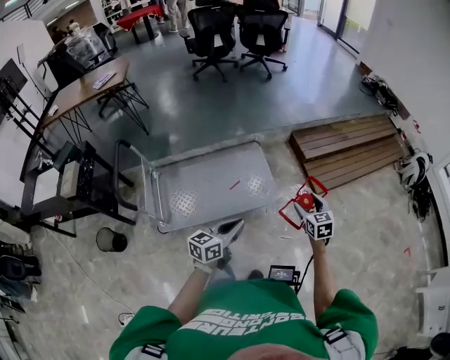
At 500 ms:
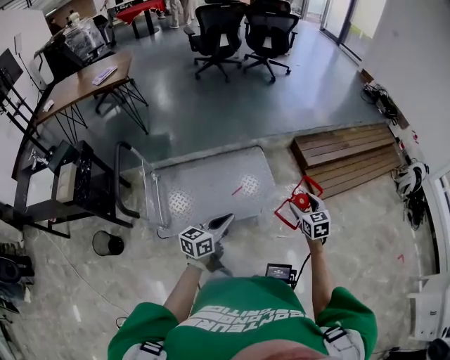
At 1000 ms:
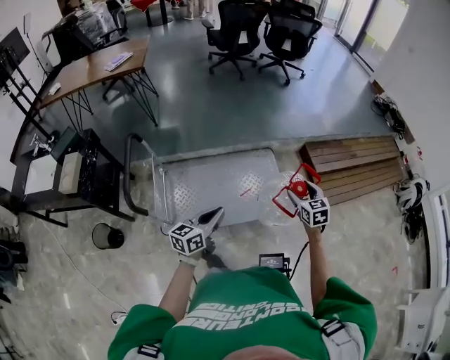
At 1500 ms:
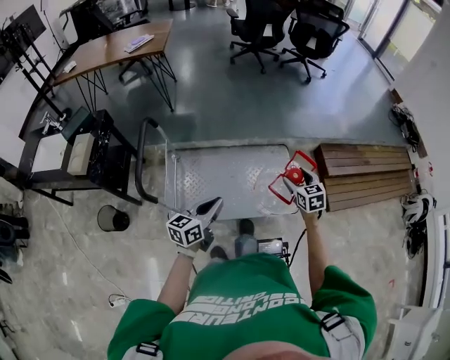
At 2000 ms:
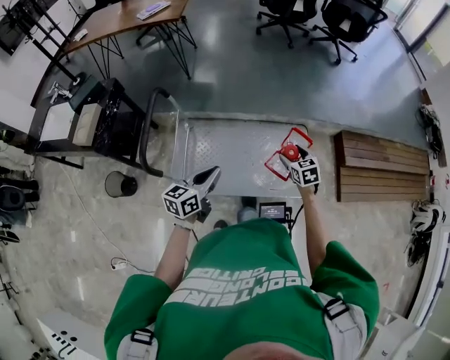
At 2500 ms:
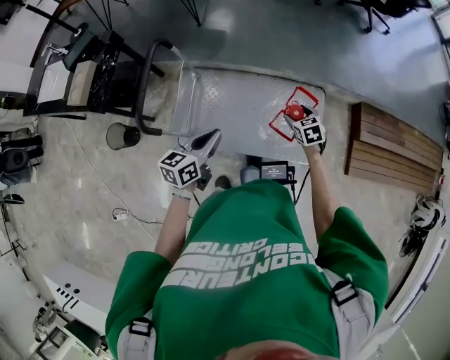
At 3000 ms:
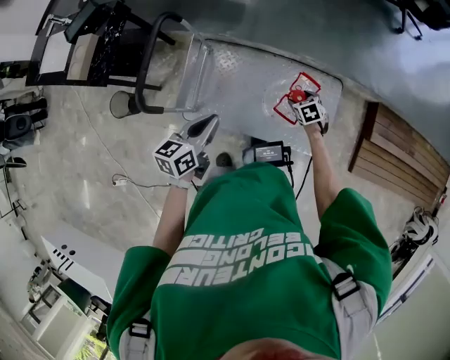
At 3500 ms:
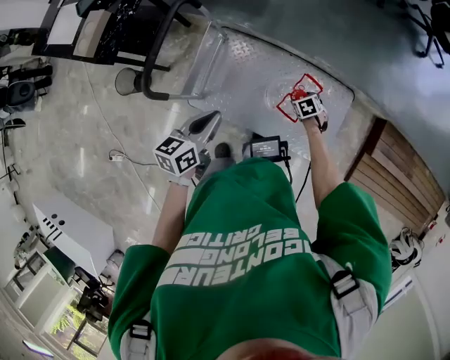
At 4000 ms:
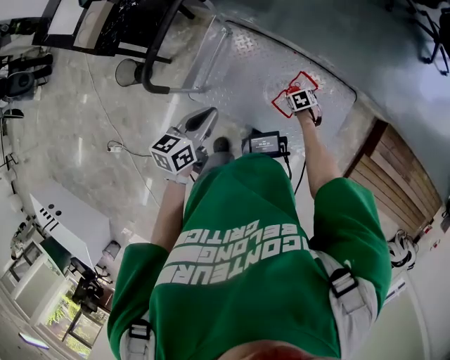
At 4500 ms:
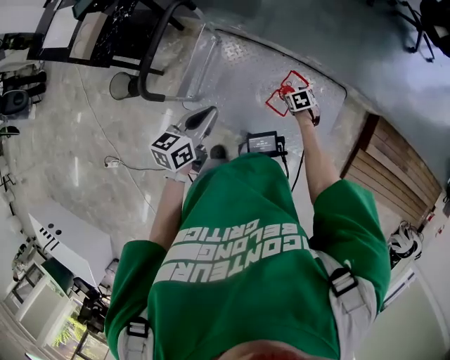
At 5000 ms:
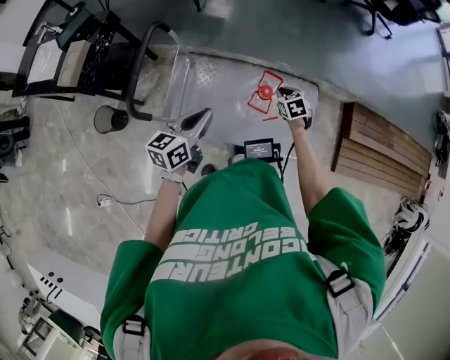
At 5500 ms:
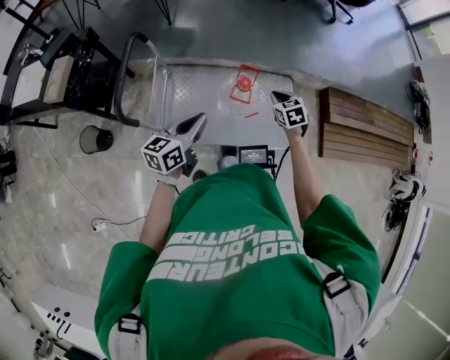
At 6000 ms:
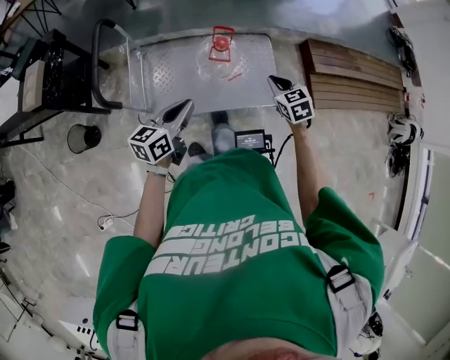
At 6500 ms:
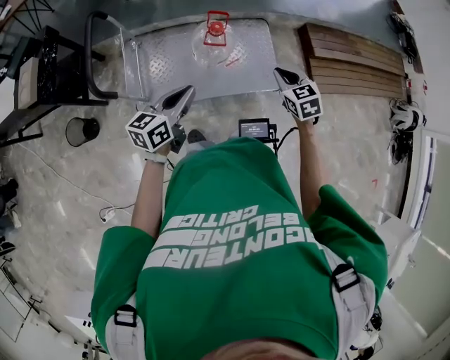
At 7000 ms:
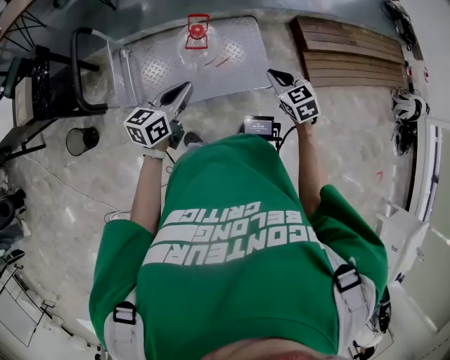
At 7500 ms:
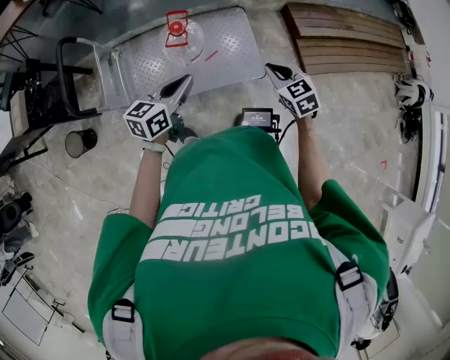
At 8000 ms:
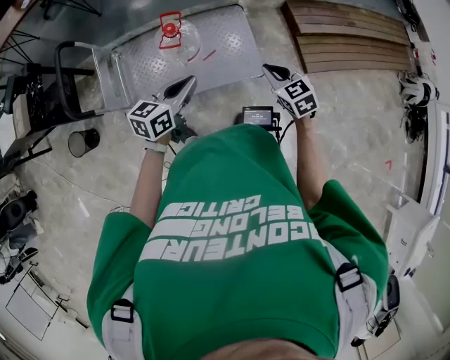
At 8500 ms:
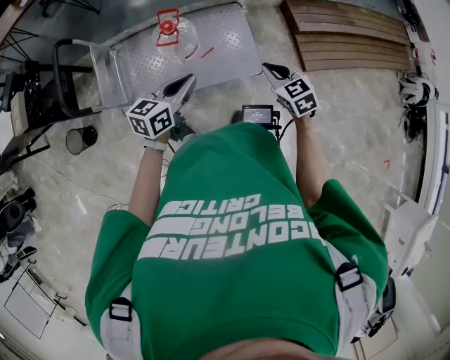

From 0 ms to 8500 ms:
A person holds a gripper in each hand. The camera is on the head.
From 0 ms to 2000 ms: The left gripper ends up some 35 cm from where it was, and swivels about 30 degrees. The right gripper shifts by about 40 cm, and swivels about 30 degrees.
From 2000 ms to 4000 ms: The right gripper moves downward, about 30 cm, and tilts its fingers approximately 40 degrees downward. Meanwhile the left gripper moves roughly 10 cm, and changes its angle by approximately 30 degrees.
From 4000 ms to 6500 ms: The right gripper shifts approximately 35 cm upward, tilts its fingers some 40 degrees upward, and closes its fingers. Meanwhile the left gripper ends up about 15 cm from where it was, and swivels about 40 degrees.
From 6500 ms to 8500 ms: The grippers both shift to the right by about 20 cm.

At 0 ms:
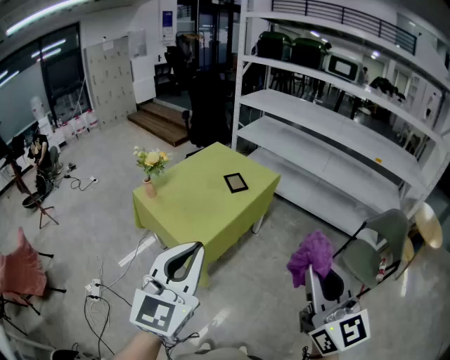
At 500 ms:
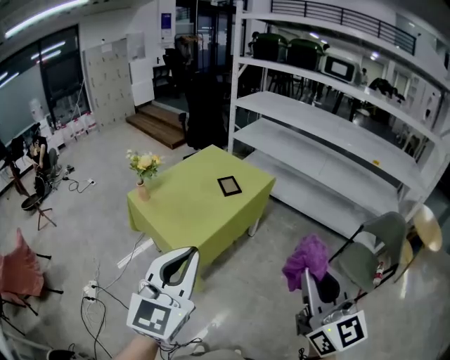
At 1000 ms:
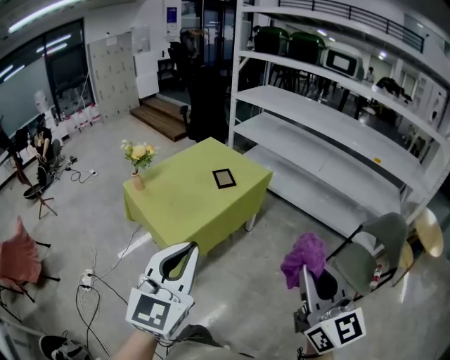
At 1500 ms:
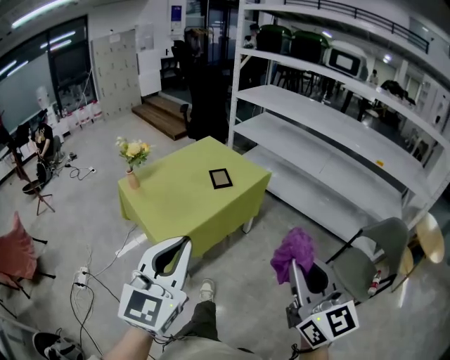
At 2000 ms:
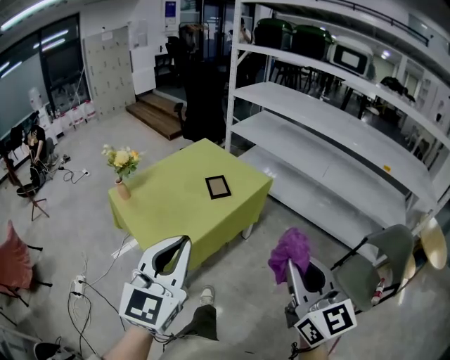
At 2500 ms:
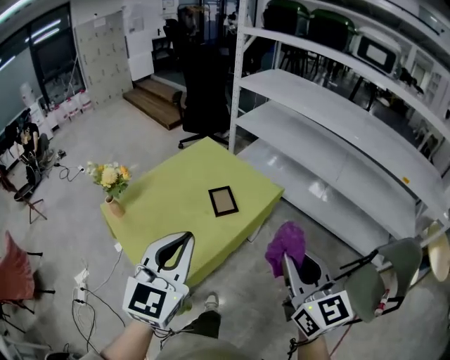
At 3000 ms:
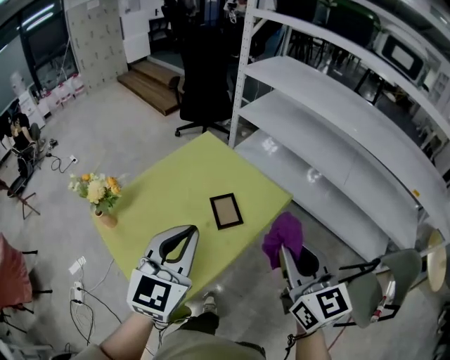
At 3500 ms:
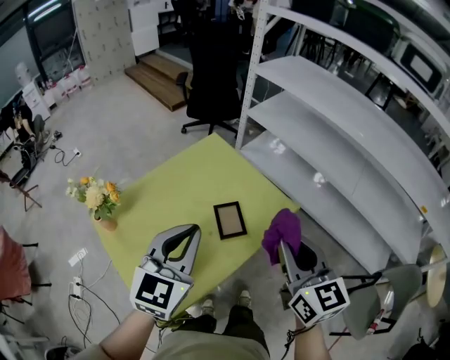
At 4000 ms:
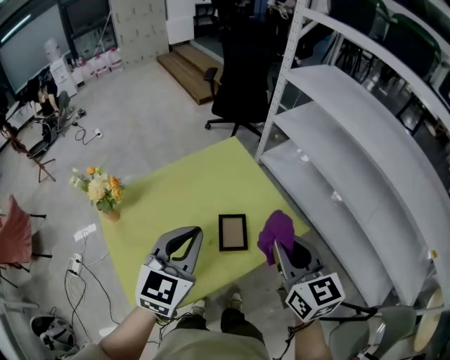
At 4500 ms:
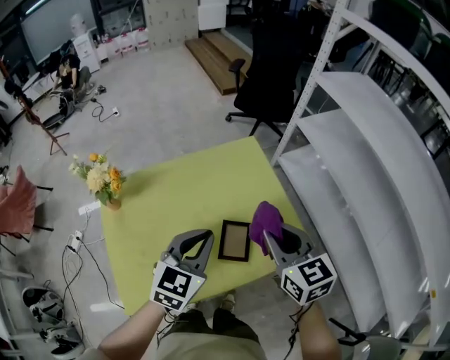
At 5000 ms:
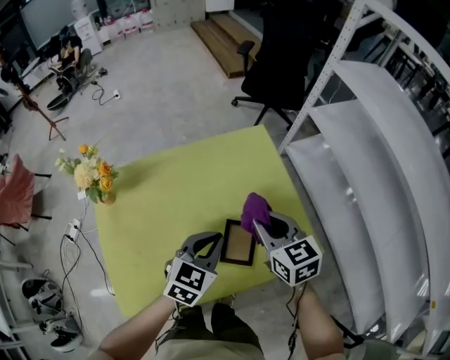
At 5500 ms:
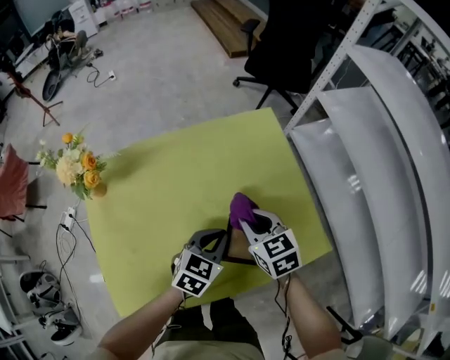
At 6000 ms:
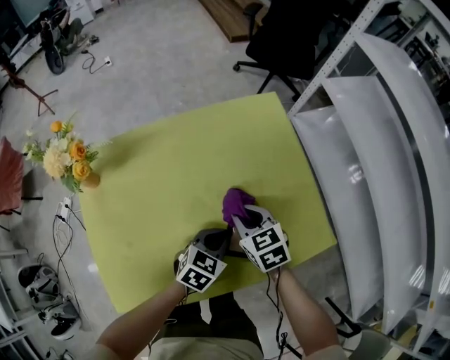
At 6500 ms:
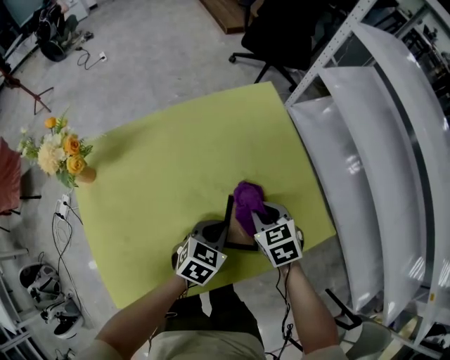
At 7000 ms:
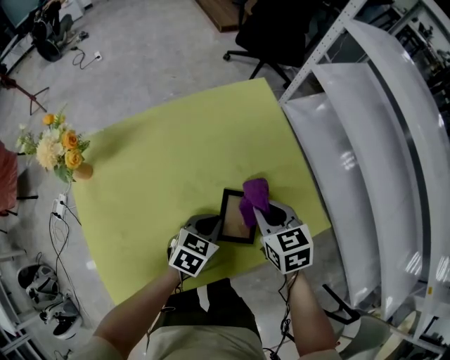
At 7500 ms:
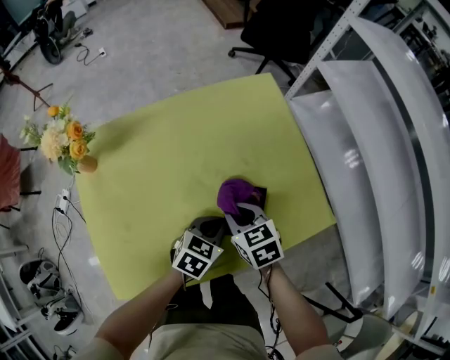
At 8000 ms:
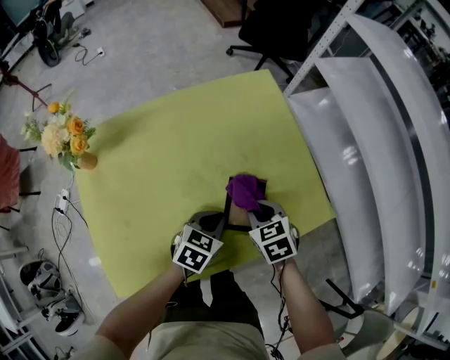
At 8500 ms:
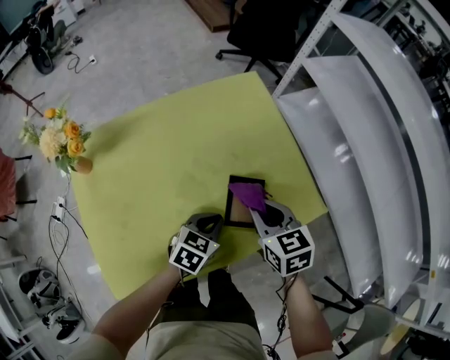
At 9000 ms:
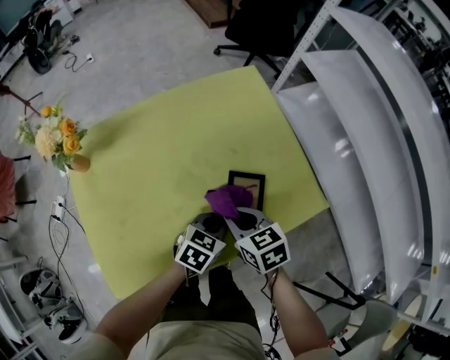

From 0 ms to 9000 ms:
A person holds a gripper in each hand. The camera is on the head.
From 0 ms to 2000 ms: The two grippers go some 20 cm forward, to the right and downward.
From 2000 ms to 4500 ms: Both grippers are carried forward, approximately 50 cm. The left gripper changes its angle by roughly 30 degrees. Meanwhile the right gripper rotates roughly 40 degrees.
From 4500 ms to 7000 ms: The grippers both shift downward by some 25 cm. The right gripper rotates roughly 20 degrees. The left gripper rotates roughly 30 degrees.
From 7000 ms to 9000 ms: The left gripper shifts by some 5 cm; the right gripper goes up and down, about 10 cm each way, reversing 2 times.

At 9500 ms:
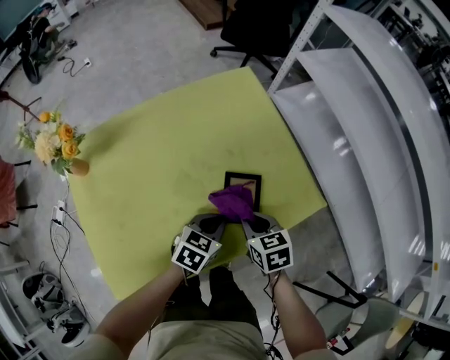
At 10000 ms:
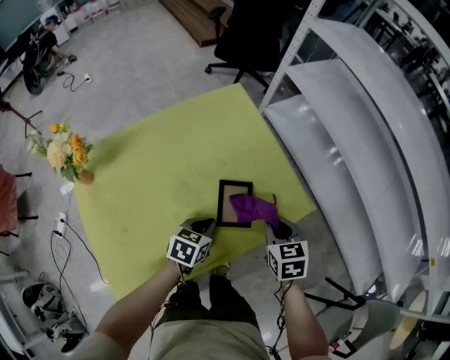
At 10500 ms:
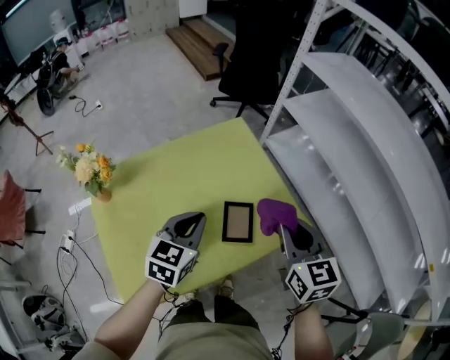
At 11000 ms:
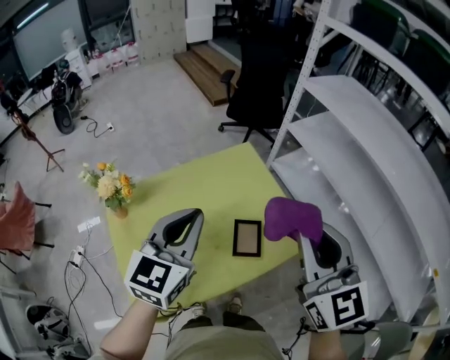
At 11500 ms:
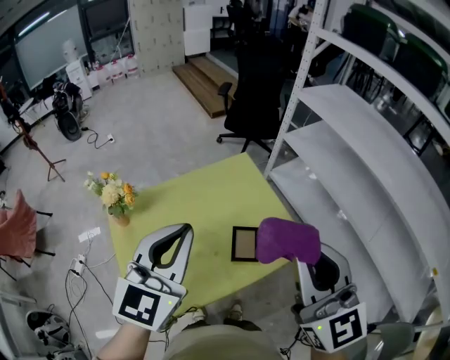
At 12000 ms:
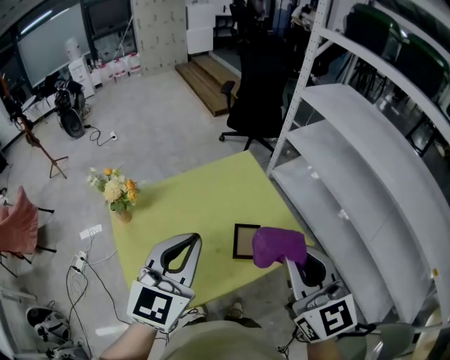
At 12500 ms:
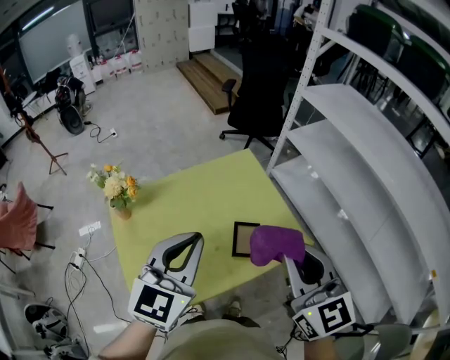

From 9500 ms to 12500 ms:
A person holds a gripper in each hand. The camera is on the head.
From 9500 ms to 11000 ms: The grippers both shift upward by about 40 cm. The left gripper tilts its fingers roughly 30 degrees upward. Meanwhile the right gripper tips its fingers upward by about 50 degrees.
From 11000 ms to 12500 ms: The right gripper changes place by approximately 5 cm, while the left gripper goes approximately 5 cm backward.

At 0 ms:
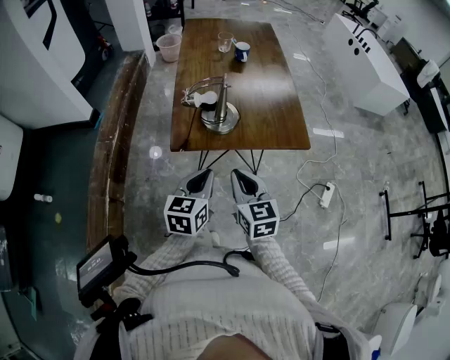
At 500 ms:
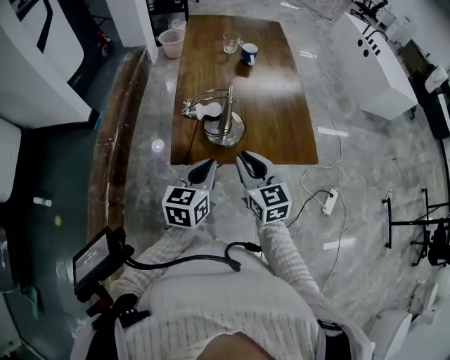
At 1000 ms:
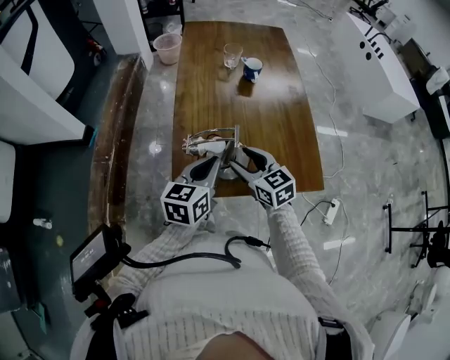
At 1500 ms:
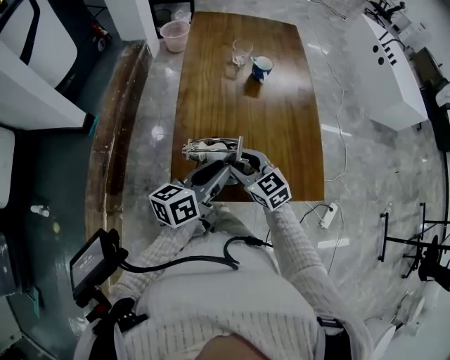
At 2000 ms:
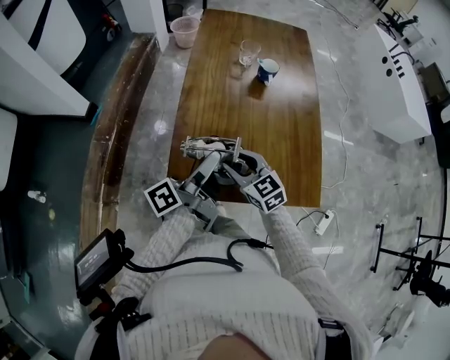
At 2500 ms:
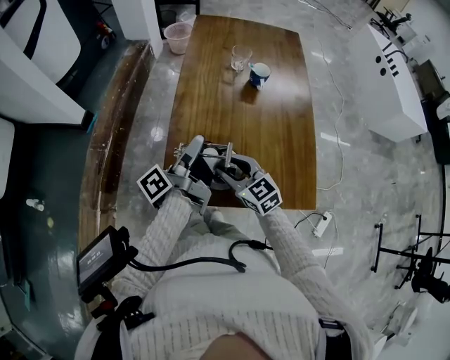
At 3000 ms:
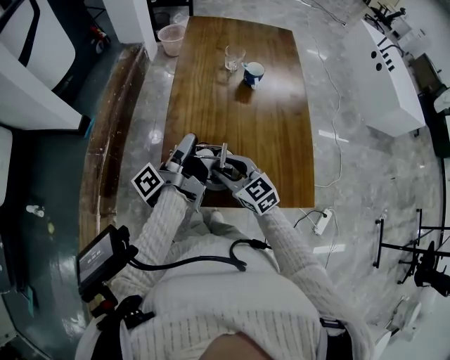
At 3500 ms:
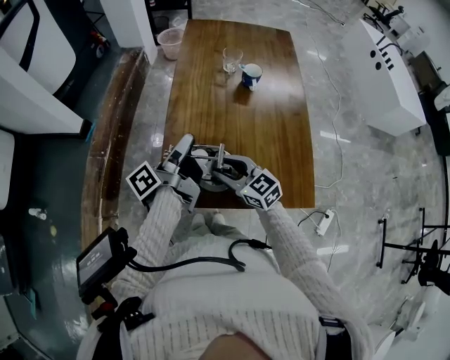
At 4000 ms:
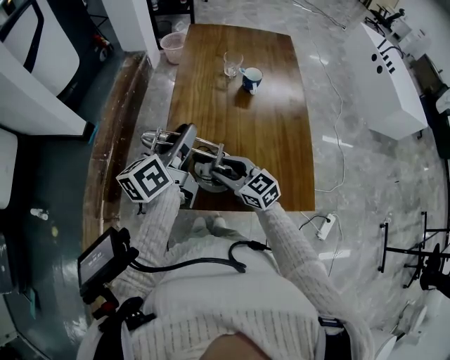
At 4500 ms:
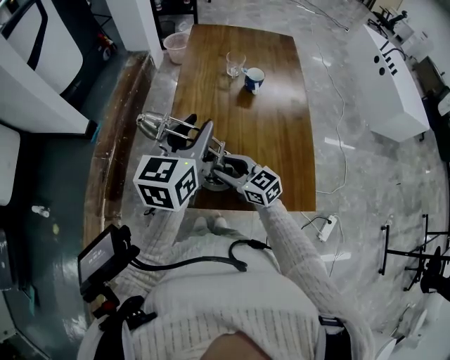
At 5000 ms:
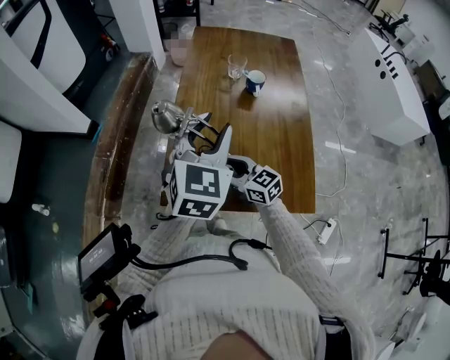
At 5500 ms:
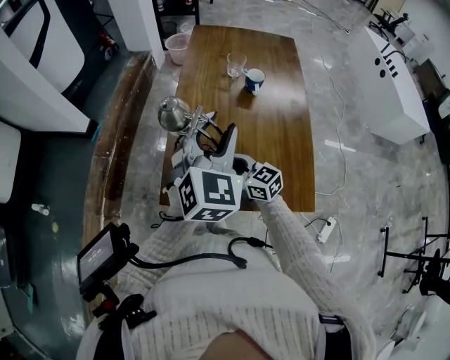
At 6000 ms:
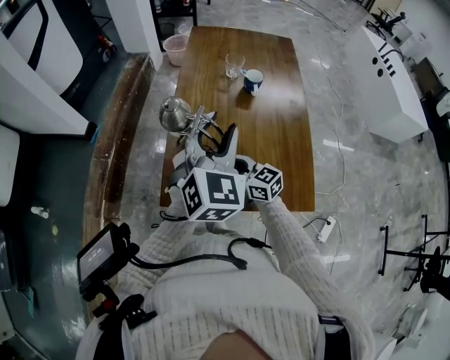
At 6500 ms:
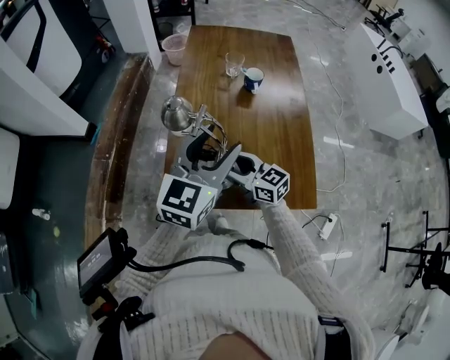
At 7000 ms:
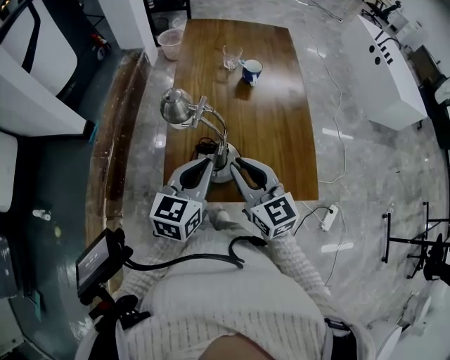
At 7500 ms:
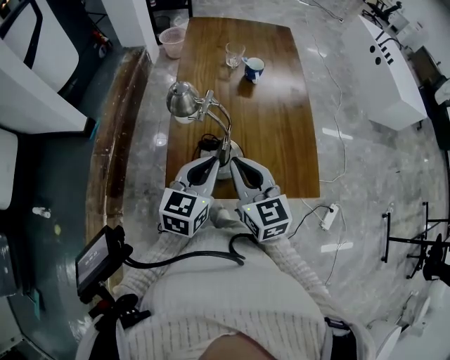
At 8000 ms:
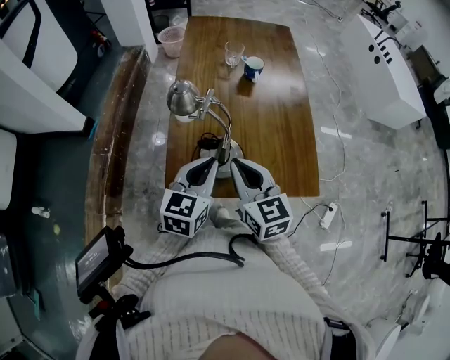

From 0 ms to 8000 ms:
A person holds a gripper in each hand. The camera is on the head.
From 0 ms to 2000 ms: The grippers both shift forward by approximately 25 cm. The right gripper swivels about 30 degrees, and opens its fingers. Meanwhile the left gripper rotates around the line of its fingers by about 60 degrees, counterclockwise from behind, and opens its fingers.
From 2000 ms to 4000 ms: The left gripper goes about 10 cm forward and upward, changes its angle by about 40 degrees, and closes.
From 4000 ms to 6000 ms: The left gripper is displaced to the right and upward by some 10 cm, and rotates around the line of its fingers by approximately 70 degrees, clockwise from behind.
From 6000 ms to 8000 ms: The left gripper travels downward by approximately 15 cm, turns by some 40 degrees, and closes up. The right gripper goes approximately 10 cm upward, swivels some 30 degrees, and closes.
